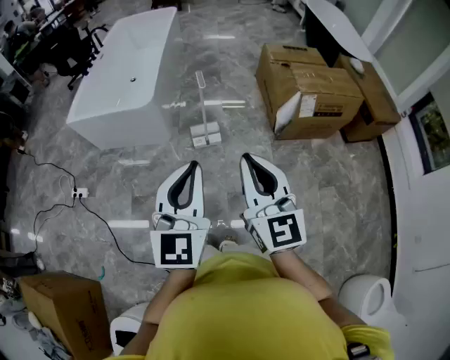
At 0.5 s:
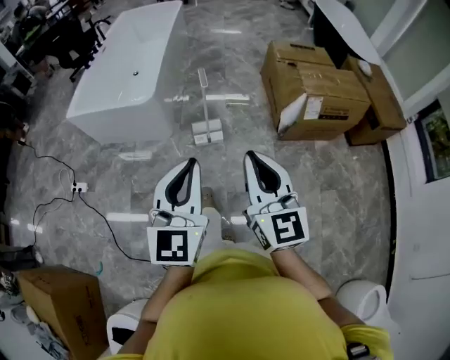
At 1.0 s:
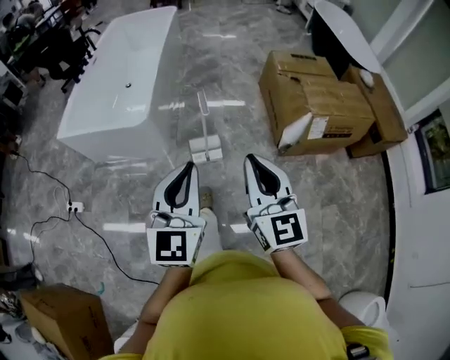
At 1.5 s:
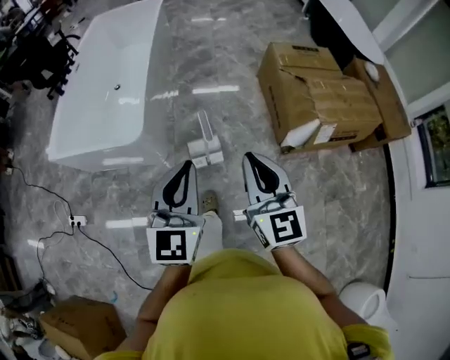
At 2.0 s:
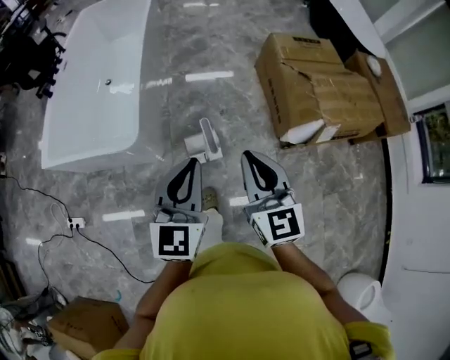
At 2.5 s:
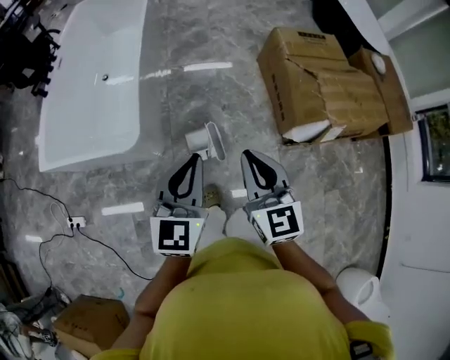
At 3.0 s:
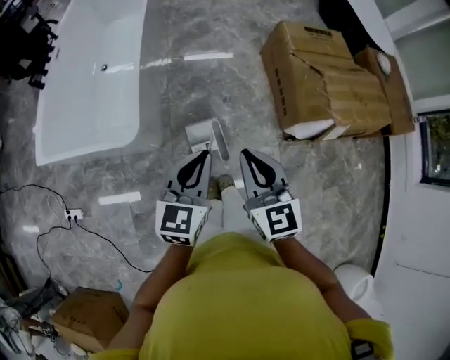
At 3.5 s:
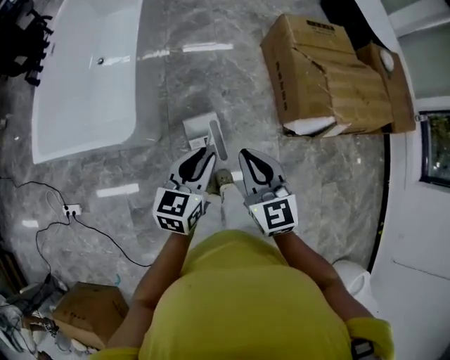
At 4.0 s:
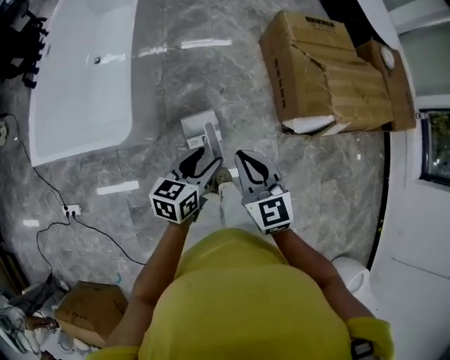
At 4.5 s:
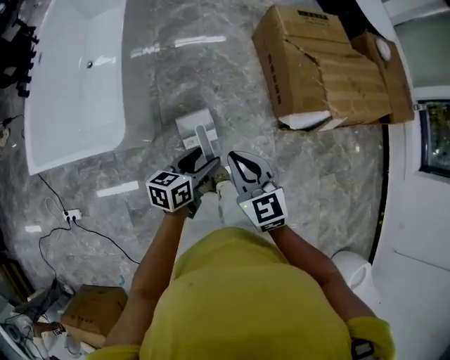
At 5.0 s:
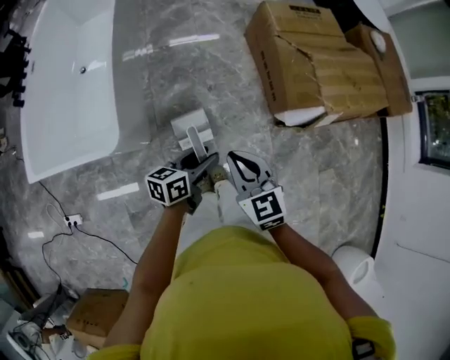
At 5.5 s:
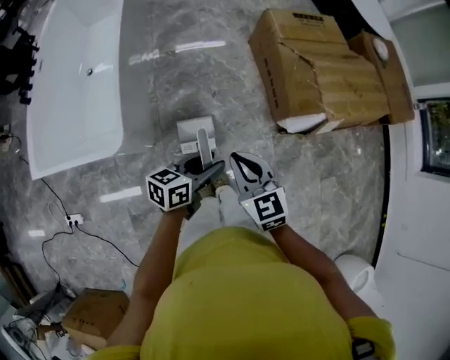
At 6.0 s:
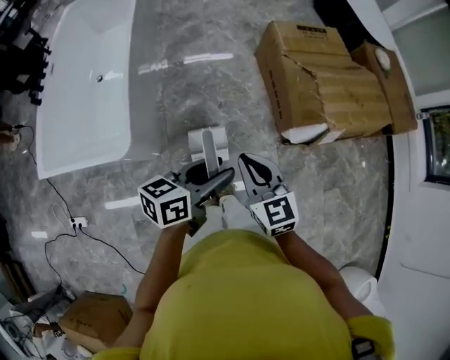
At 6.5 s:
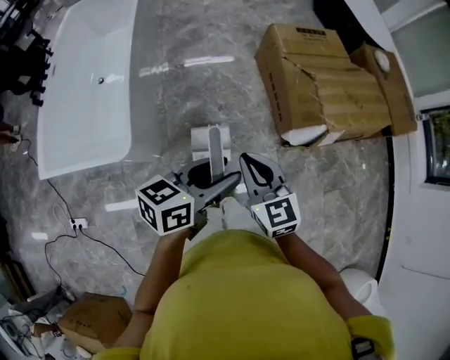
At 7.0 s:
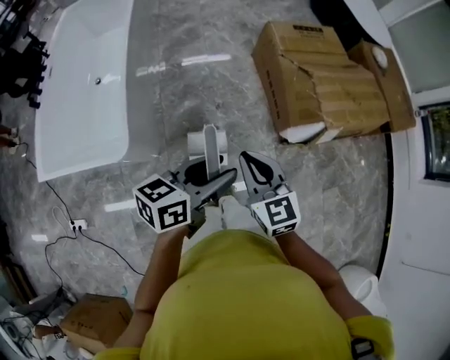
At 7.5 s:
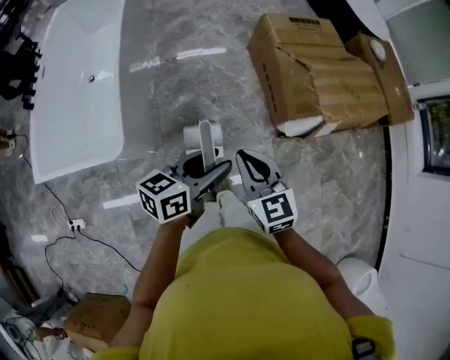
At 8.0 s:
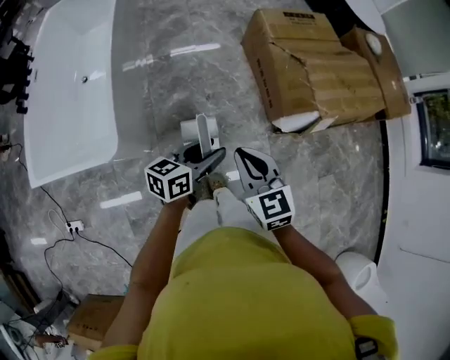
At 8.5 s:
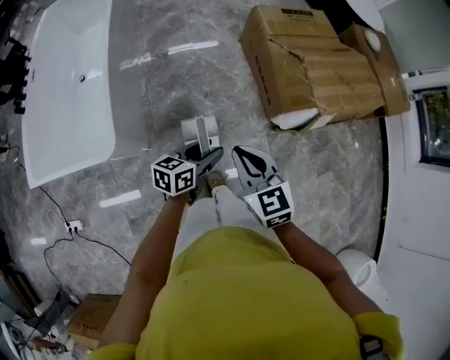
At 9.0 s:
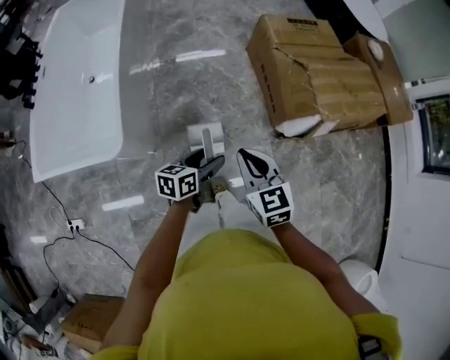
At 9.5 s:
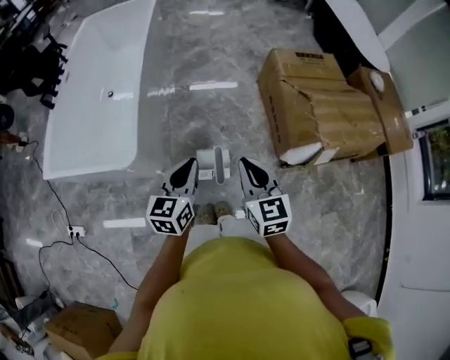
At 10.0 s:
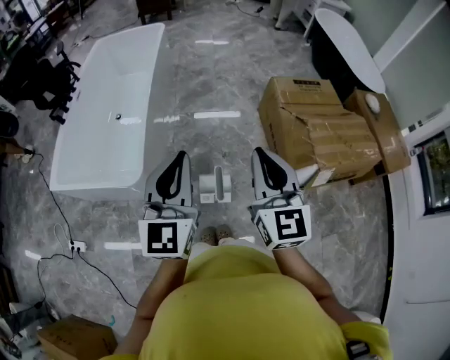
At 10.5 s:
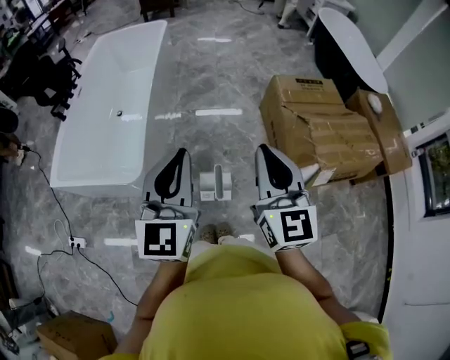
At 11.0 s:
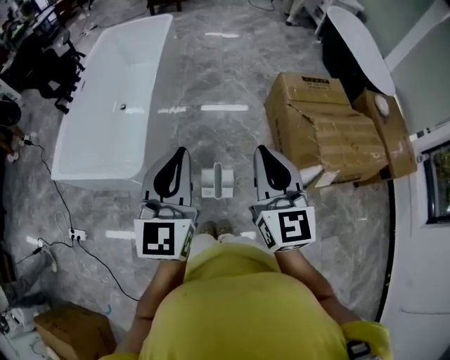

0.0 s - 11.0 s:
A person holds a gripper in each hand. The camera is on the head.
0.0 s - 2.0 s: The grippers both shift forward by approximately 40 cm.
2.0 s - 3.5 s: Both grippers travel together downward and forward, some 15 cm. The left gripper rotates approximately 30 degrees.
3.5 s - 5.5 s: The left gripper goes some 10 cm to the right and downward, and swivels about 30 degrees; the right gripper is displaced downward by roughly 5 cm.
5.5 s - 7.5 s: The left gripper is displaced upward by approximately 10 cm.
7.5 s - 9.0 s: The left gripper travels downward by some 15 cm.
9.0 s - 11.0 s: The right gripper goes about 20 cm upward, and rotates approximately 30 degrees, while the left gripper goes about 35 cm upward, turns by about 70 degrees, and closes.

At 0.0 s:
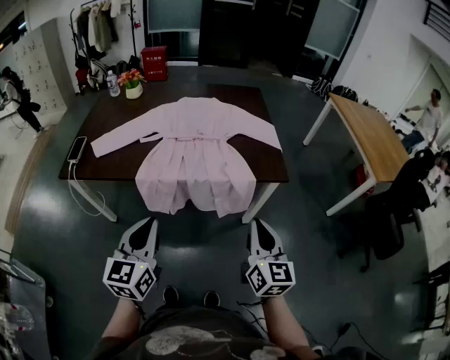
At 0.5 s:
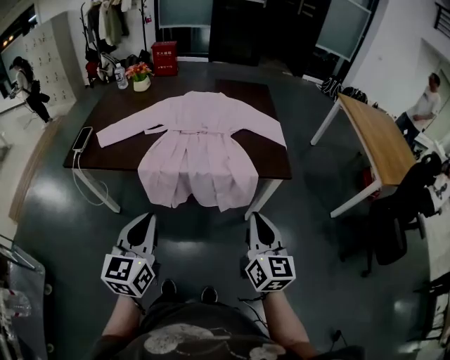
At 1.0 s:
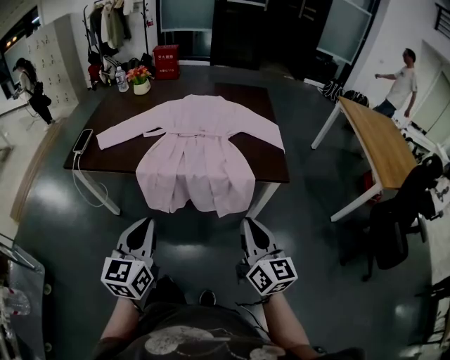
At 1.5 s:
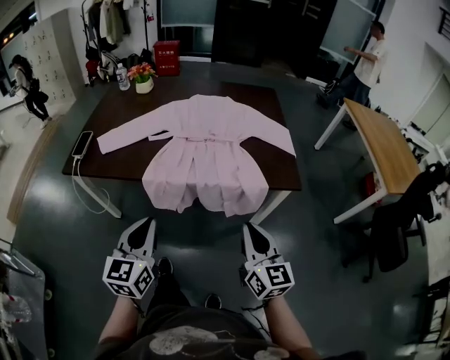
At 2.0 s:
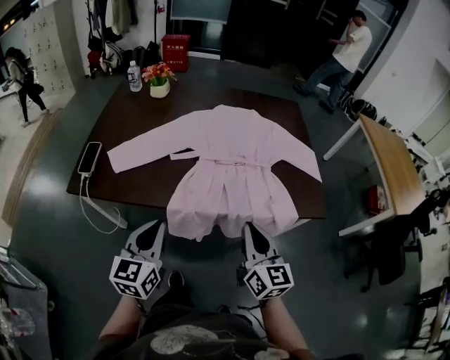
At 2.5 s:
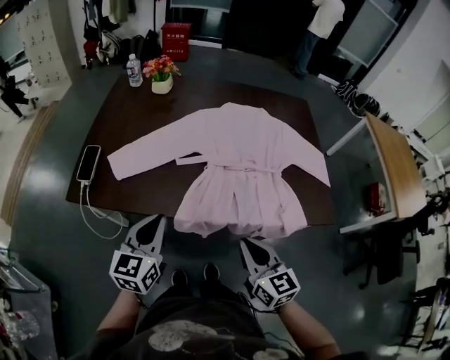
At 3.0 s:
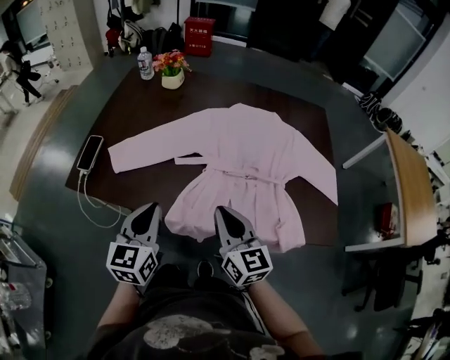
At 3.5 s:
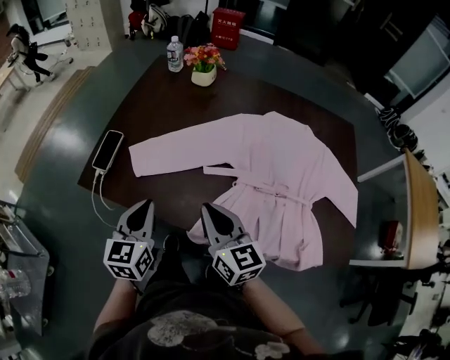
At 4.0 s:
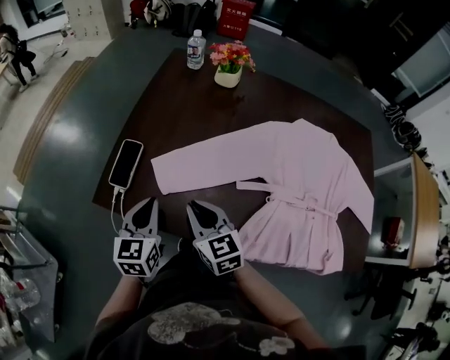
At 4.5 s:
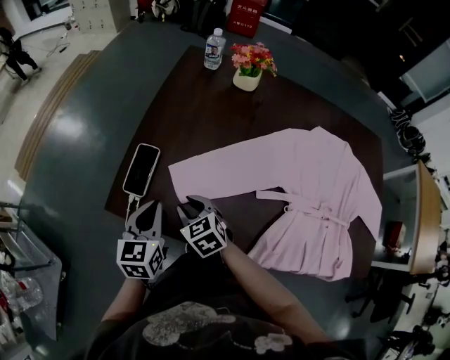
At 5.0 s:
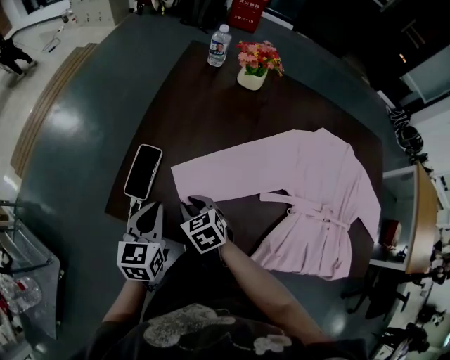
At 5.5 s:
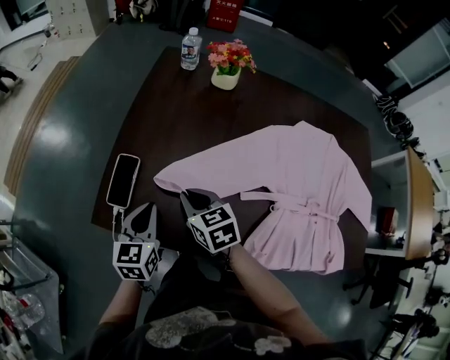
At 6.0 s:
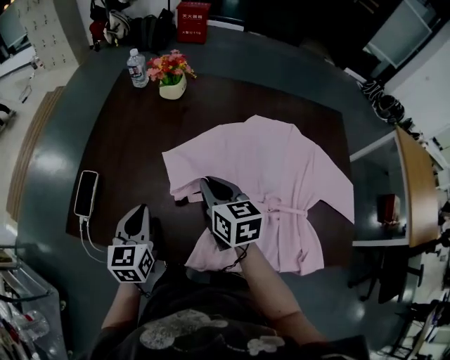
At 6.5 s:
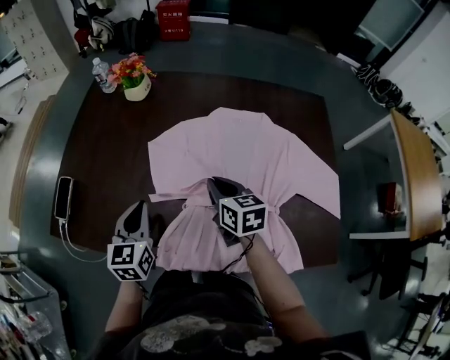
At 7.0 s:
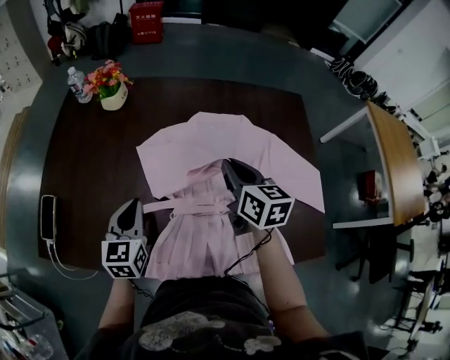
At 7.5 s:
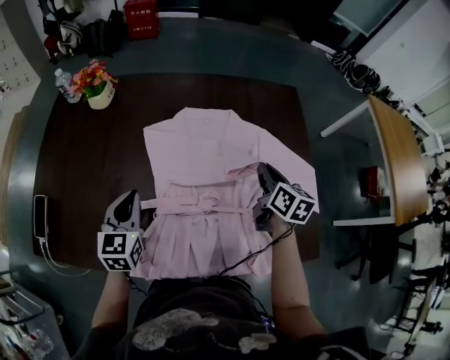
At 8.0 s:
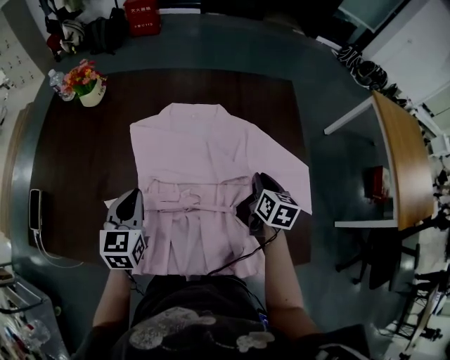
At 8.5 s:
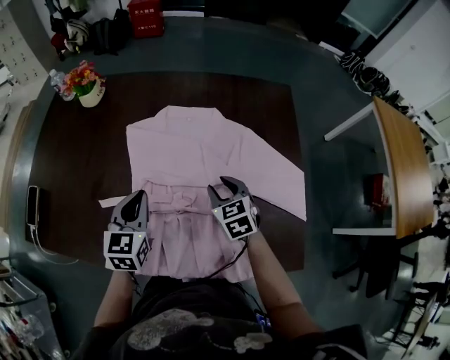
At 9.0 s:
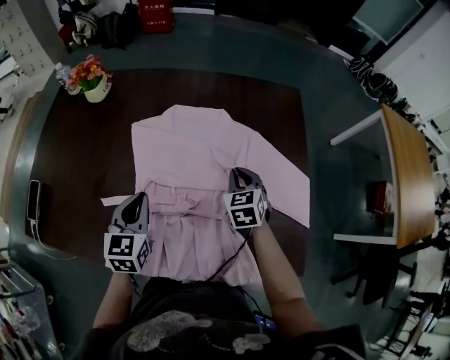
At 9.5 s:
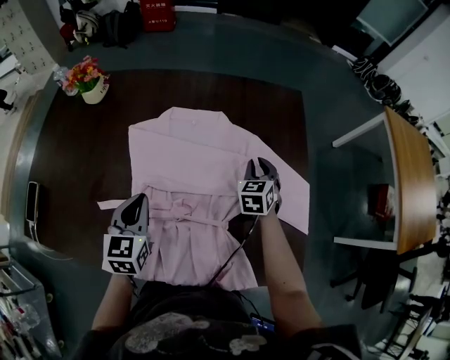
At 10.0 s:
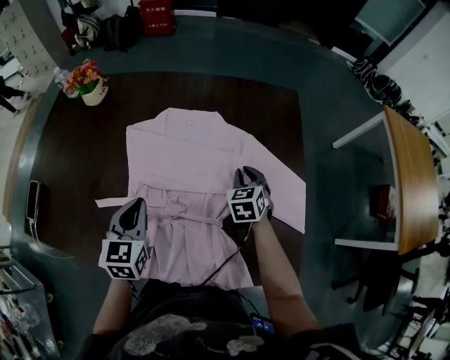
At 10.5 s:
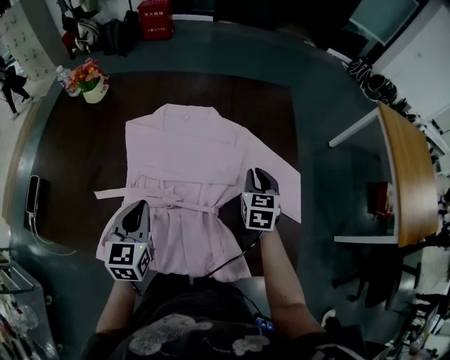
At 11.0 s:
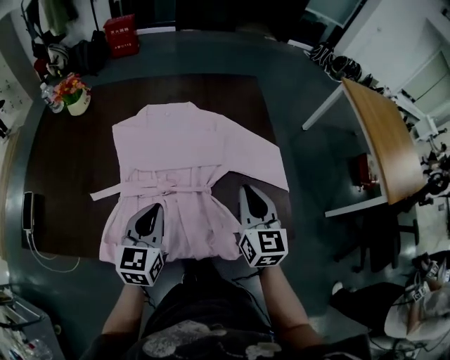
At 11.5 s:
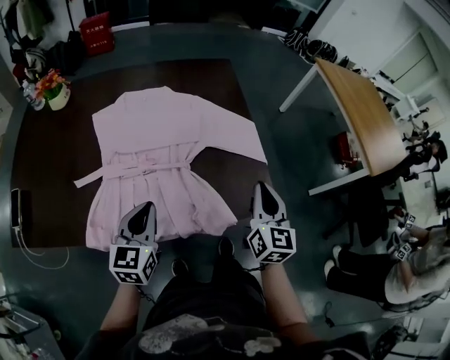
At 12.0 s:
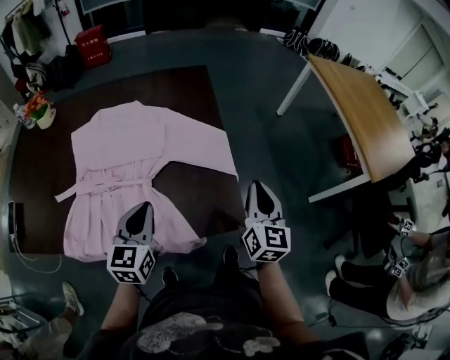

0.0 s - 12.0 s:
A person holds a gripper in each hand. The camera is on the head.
0.0 s - 2.0 s: The left gripper travels forward and to the left by some 25 cm. The right gripper is displaced to the left and forward by some 25 cm.
2.0 s - 4.0 s: The right gripper shifts by approximately 50 cm, and turns by roughly 40 degrees, while the left gripper moves about 35 cm, and rotates some 20 degrees.
4.0 s - 6.0 s: The right gripper moves to the right, roughly 20 cm. The left gripper is displaced to the right by approximately 15 cm.
6.0 s - 8.0 s: The right gripper shifts roughly 50 cm to the right, and rotates some 30 degrees, while the left gripper is displaced to the right by about 30 cm.
8.0 s - 10.0 s: The right gripper heads forward, covering some 5 cm, goes to the left and returns, some 10 cm each way, and rotates some 40 degrees; the left gripper heads to the right, covering roughly 5 cm.
10.0 s - 12.0 s: The left gripper is displaced to the right and backward by some 25 cm. The right gripper moves to the right, backward and upward, approximately 40 cm, and tilts its fingers approximately 30 degrees upward.

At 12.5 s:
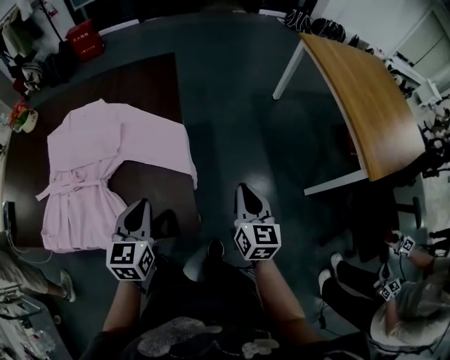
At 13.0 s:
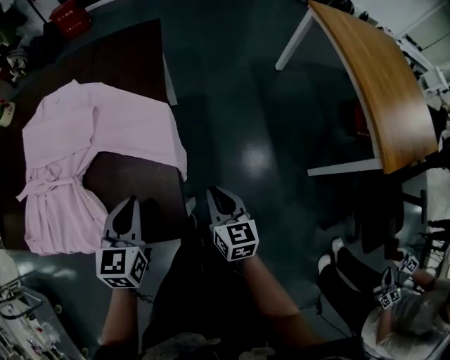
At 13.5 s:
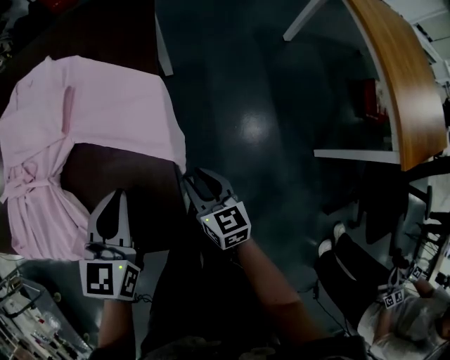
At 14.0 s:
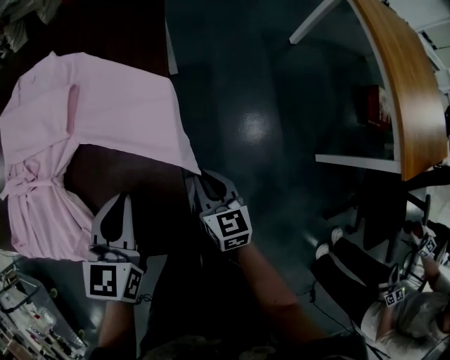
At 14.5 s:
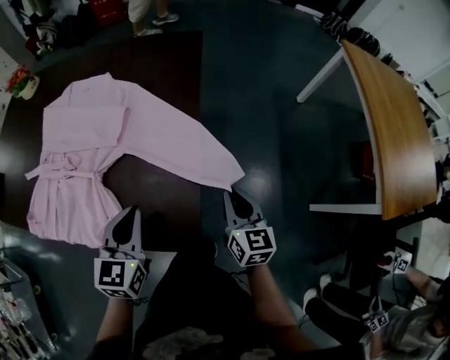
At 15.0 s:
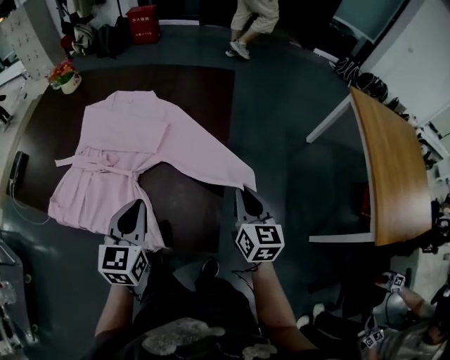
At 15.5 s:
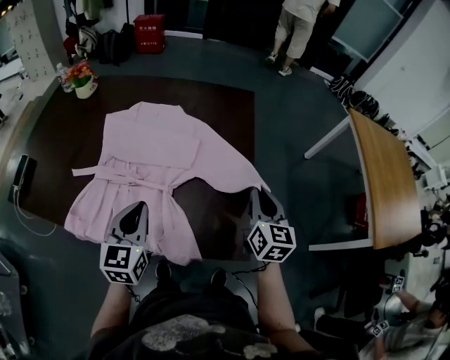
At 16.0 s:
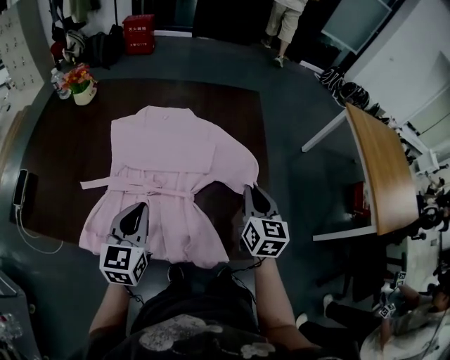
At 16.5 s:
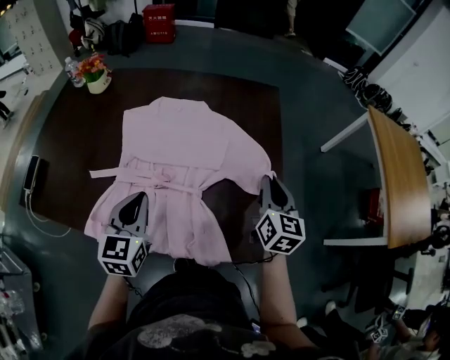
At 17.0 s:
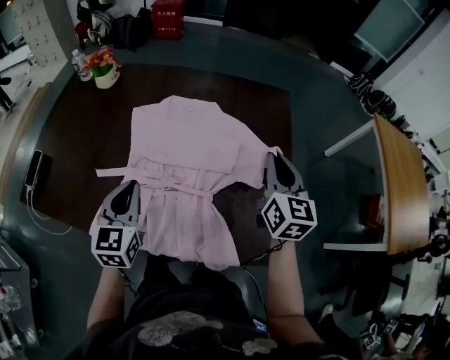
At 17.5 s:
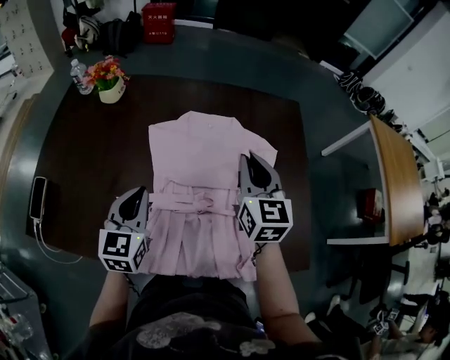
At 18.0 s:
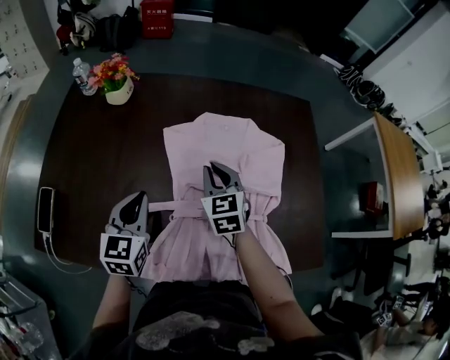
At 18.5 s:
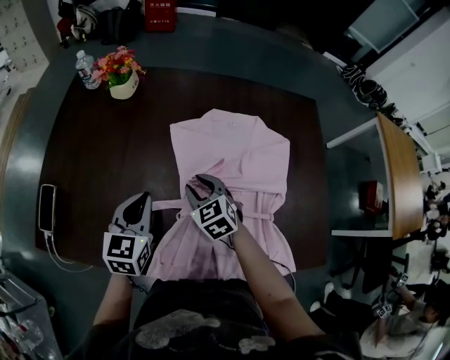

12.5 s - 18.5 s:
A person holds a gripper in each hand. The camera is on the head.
12.5 s - 14.5 s: The left gripper reaches some 10 cm downward, then returns. The right gripper shifts roughly 10 cm downward, forward and to the left.
14.5 s - 16.5 s: The left gripper travels to the left by approximately 30 cm. The right gripper moves to the left and upward, some 25 cm.
16.5 s - 18.5 s: The right gripper goes roughly 50 cm to the left, and rotates some 50 degrees, while the left gripper is displaced to the left and forward by about 25 cm.
